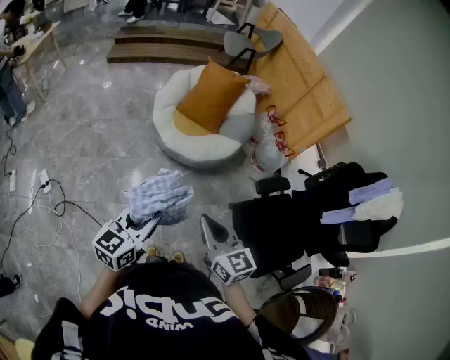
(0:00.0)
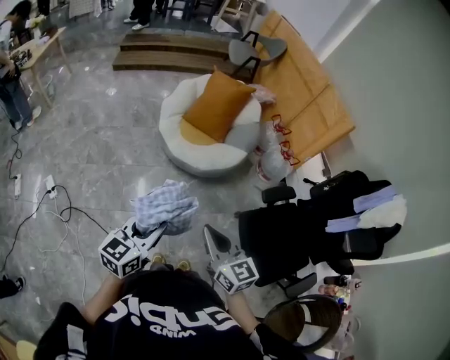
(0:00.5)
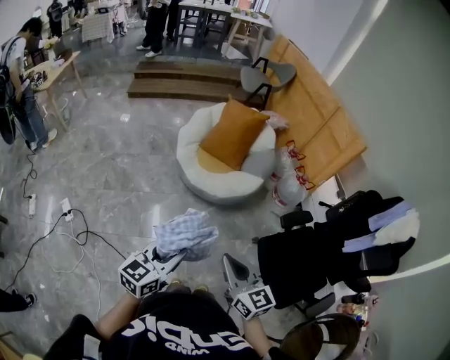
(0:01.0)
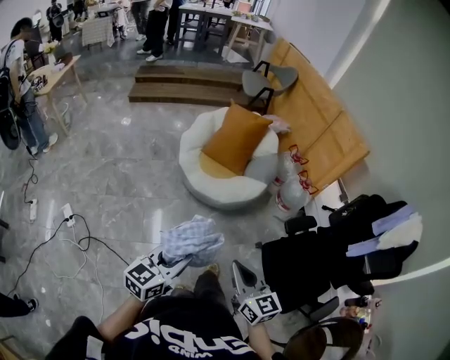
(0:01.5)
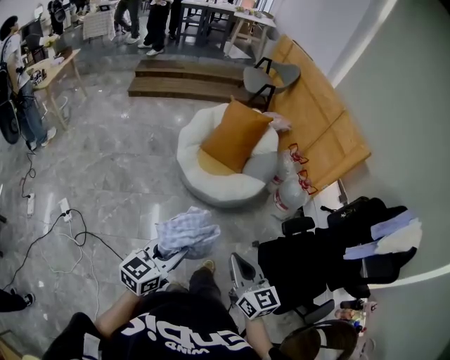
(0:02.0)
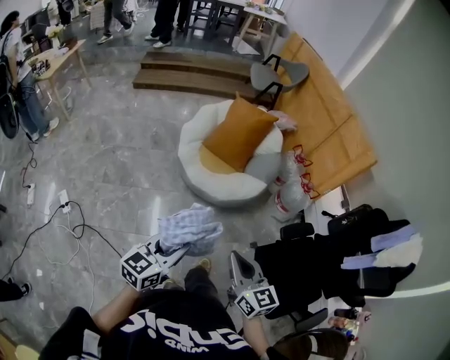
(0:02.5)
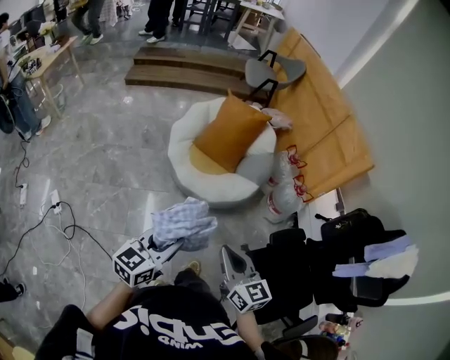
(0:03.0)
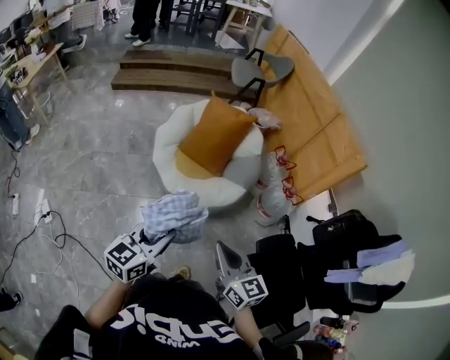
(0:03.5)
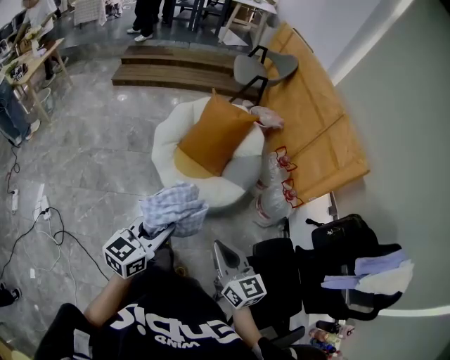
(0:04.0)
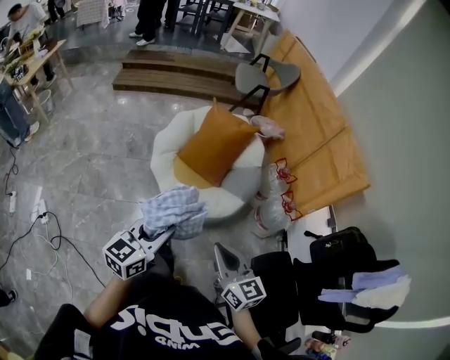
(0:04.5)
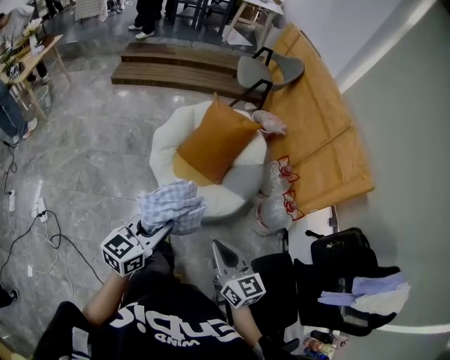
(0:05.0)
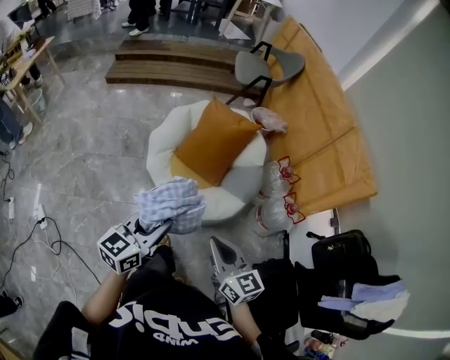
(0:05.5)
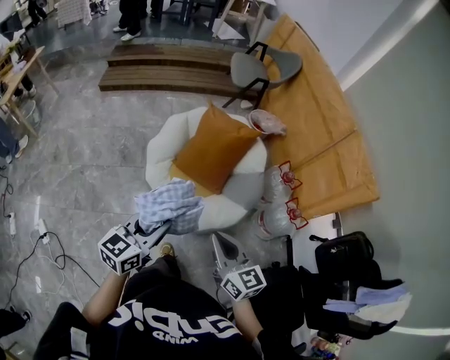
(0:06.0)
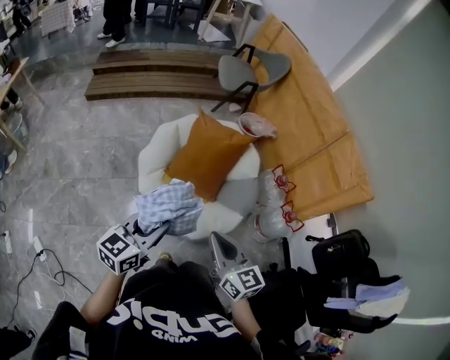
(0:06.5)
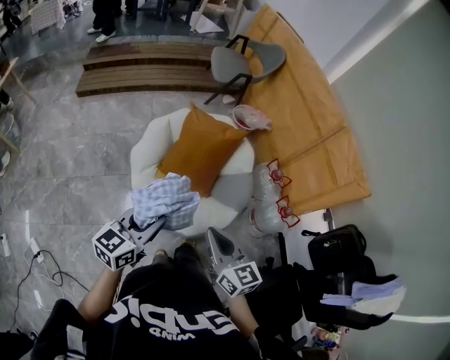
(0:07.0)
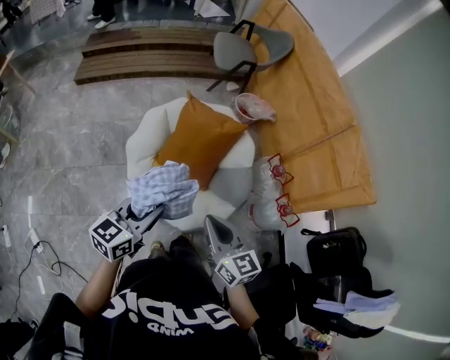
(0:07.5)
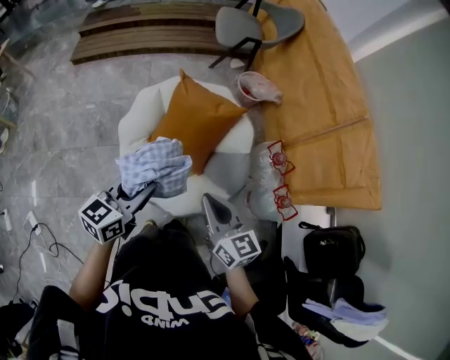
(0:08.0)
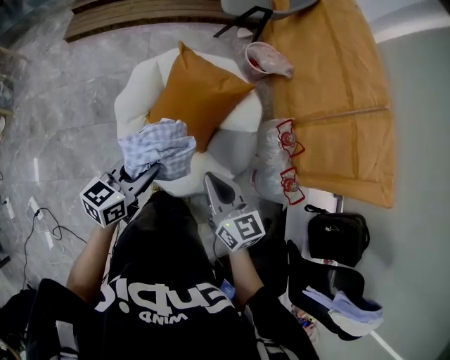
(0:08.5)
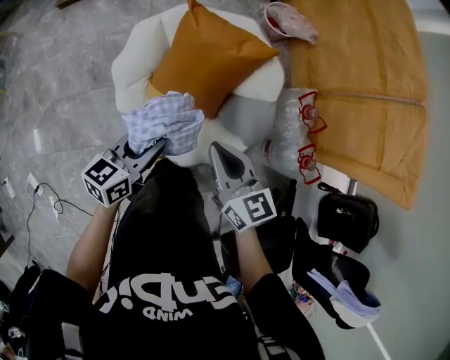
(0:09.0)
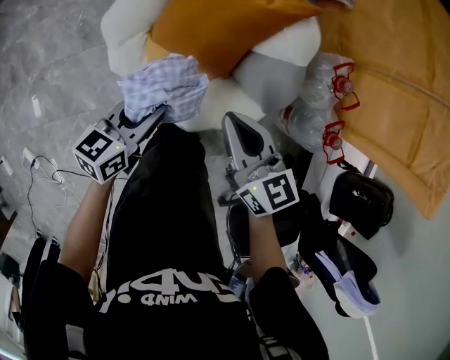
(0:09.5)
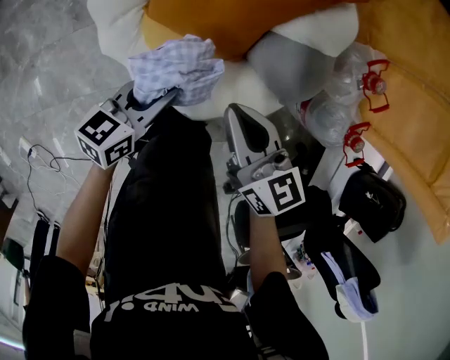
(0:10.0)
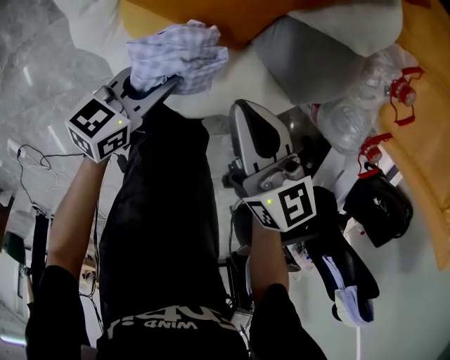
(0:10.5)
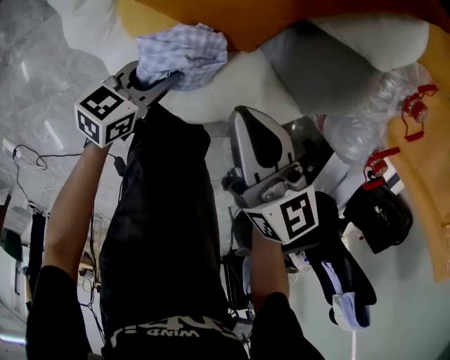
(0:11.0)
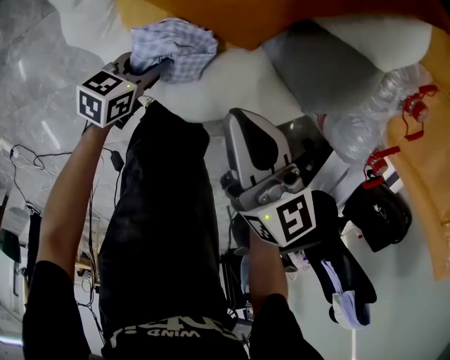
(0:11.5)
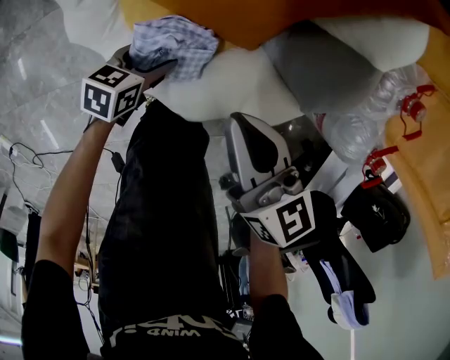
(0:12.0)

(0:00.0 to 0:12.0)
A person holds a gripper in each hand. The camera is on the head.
0:00.0 - 0:02.0: The grippers stay close to where they were, moving slightly.
0:02.0 - 0:04.0: The right gripper travels forward and to the right by approximately 25 cm, while the left gripper shifts approximately 25 cm forward.
0:04.0 - 0:06.0: The grippers both shift forward by roughly 25 cm.
0:06.0 - 0:08.0: Both grippers move forward, approximately 25 cm.
0:08.0 - 0:10.0: Both grippers travel together downward, some 35 cm. The left gripper rotates about 20 degrees.
0:10.0 - 0:12.0: The right gripper moves downward, approximately 15 cm. Meanwhile the left gripper moves downward, about 25 cm, swivels some 20 degrees, and opens.

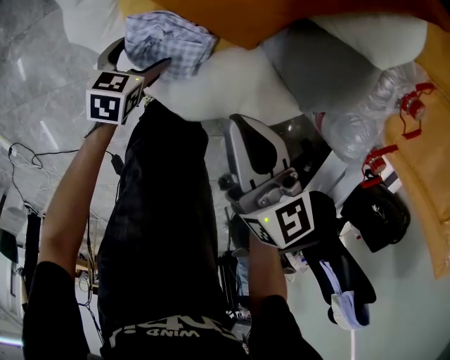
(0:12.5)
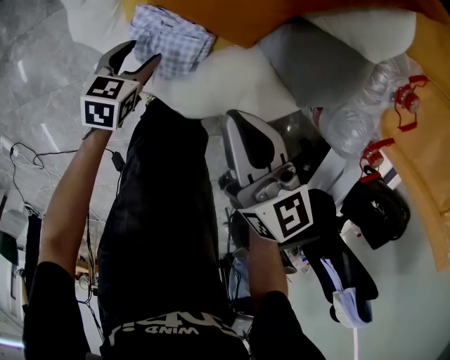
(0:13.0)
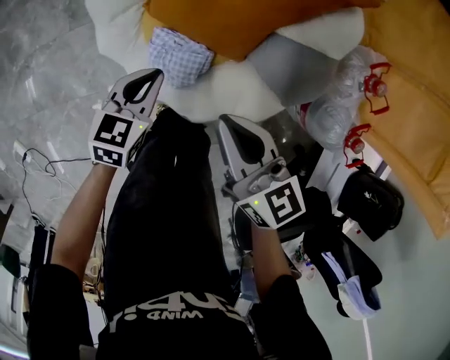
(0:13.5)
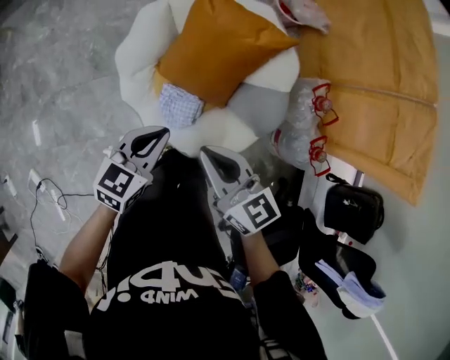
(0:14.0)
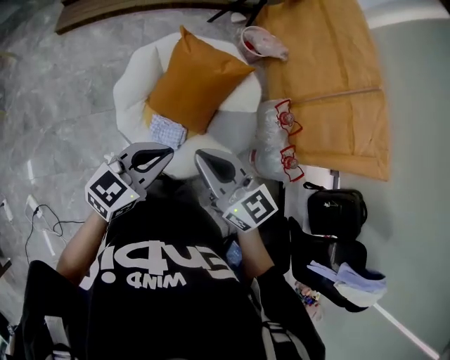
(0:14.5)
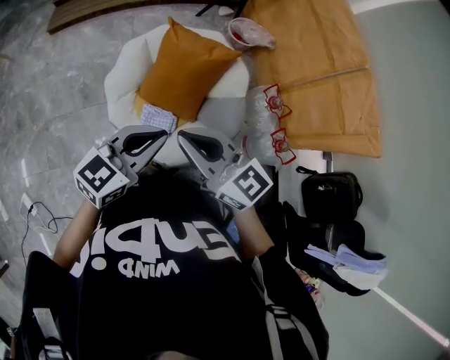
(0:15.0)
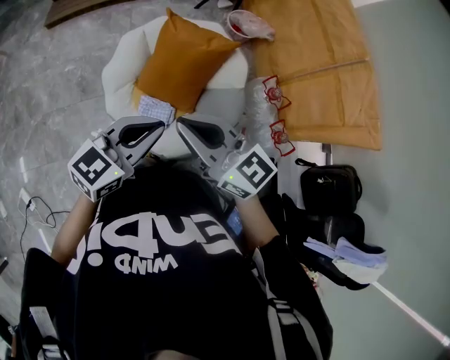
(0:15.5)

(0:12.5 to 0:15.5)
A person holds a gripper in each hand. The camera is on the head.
0:12.5 - 0:14.0: The right gripper moves upward, roughly 35 cm, while the left gripper goes roughly 50 cm upward, rotates about 30 degrees, and closes.
0:14.0 - 0:15.5: The left gripper heads upward and backward, covering roughly 25 cm, and swivels roughly 20 degrees. The right gripper heads upward, covering roughly 20 cm, and swivels approximately 20 degrees.

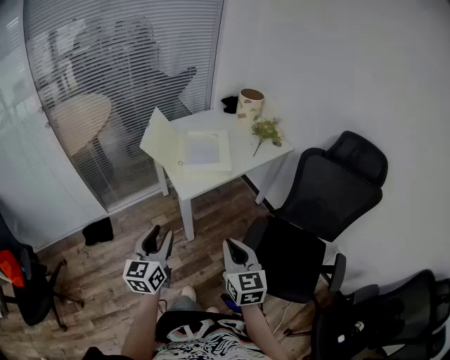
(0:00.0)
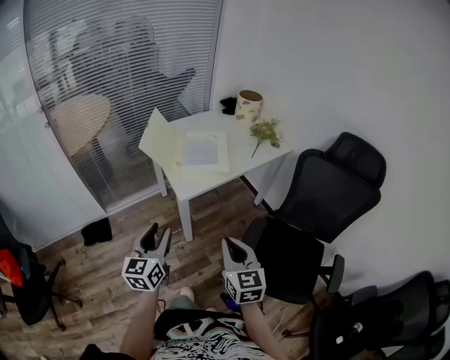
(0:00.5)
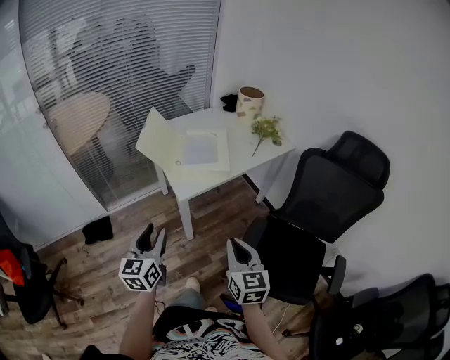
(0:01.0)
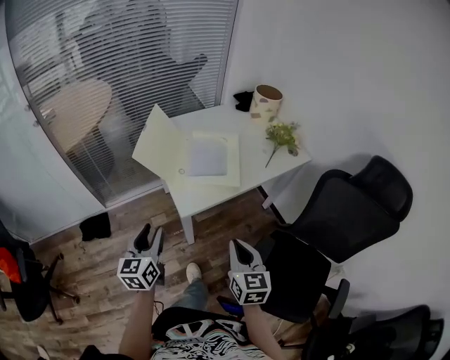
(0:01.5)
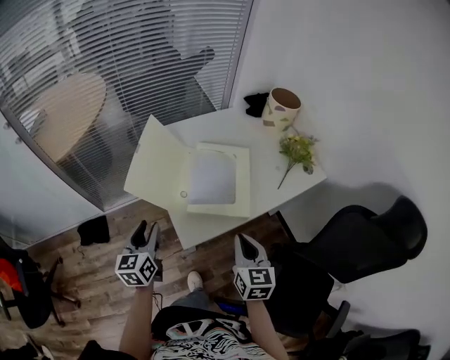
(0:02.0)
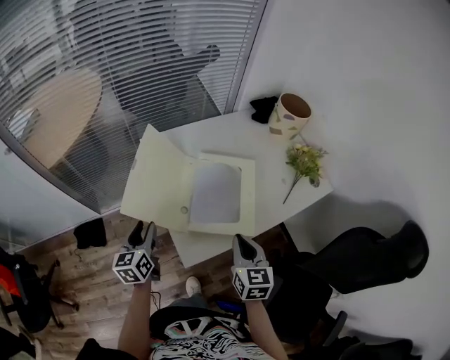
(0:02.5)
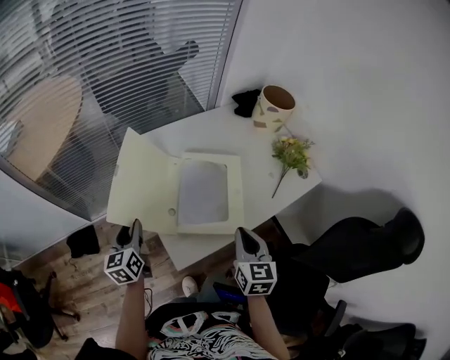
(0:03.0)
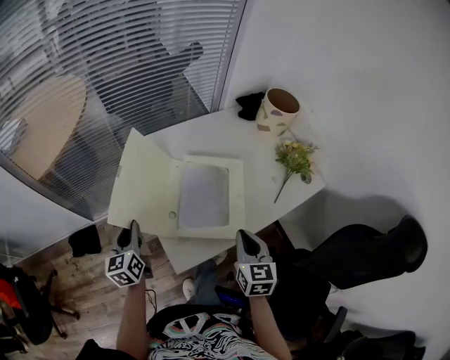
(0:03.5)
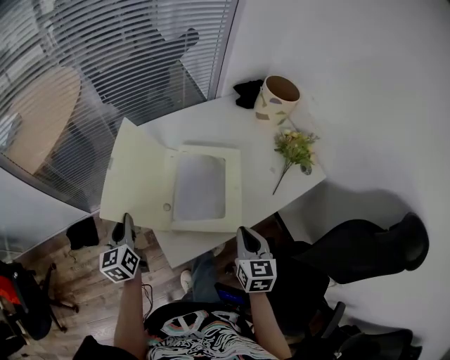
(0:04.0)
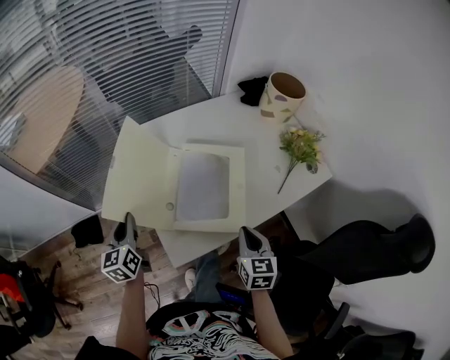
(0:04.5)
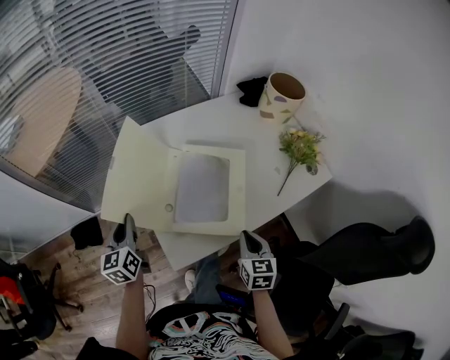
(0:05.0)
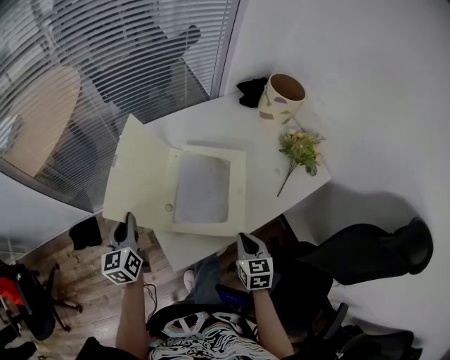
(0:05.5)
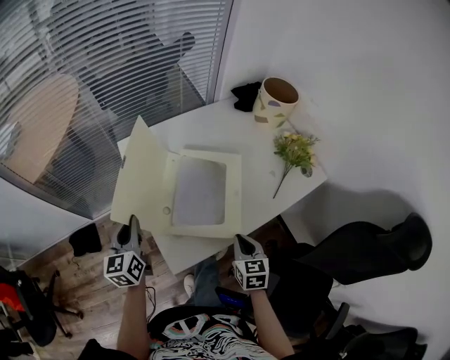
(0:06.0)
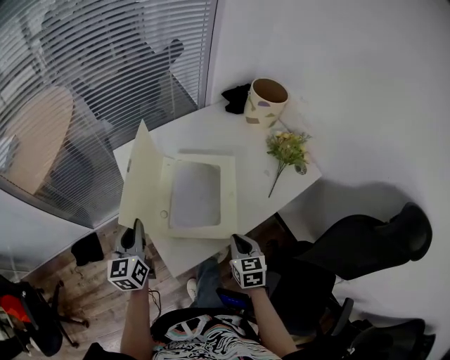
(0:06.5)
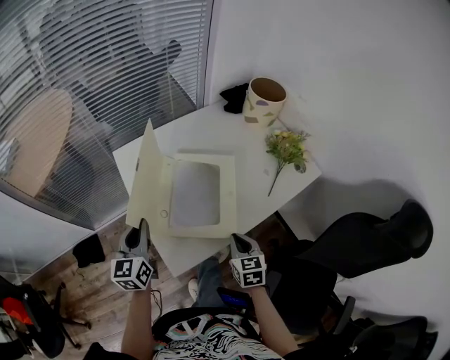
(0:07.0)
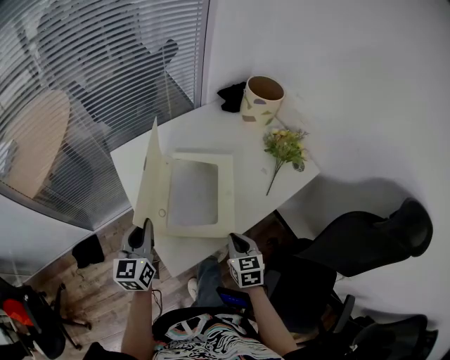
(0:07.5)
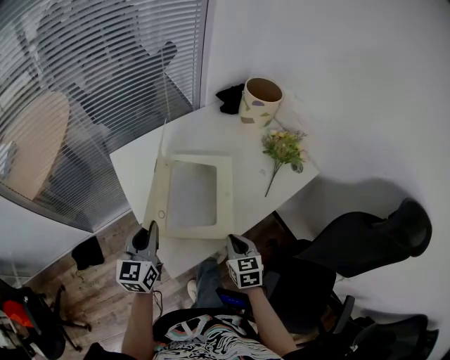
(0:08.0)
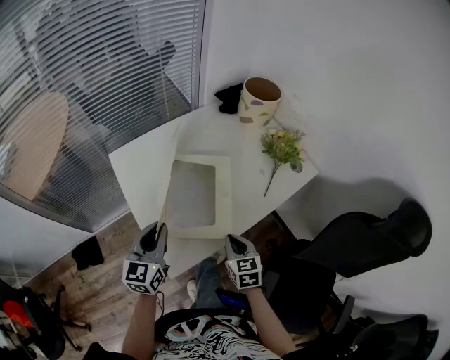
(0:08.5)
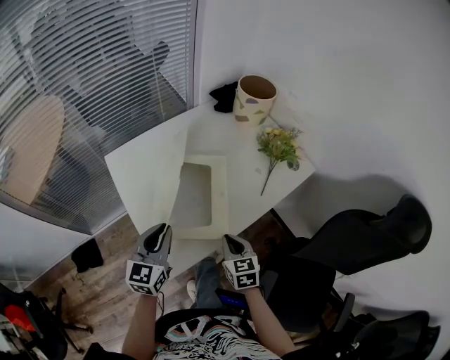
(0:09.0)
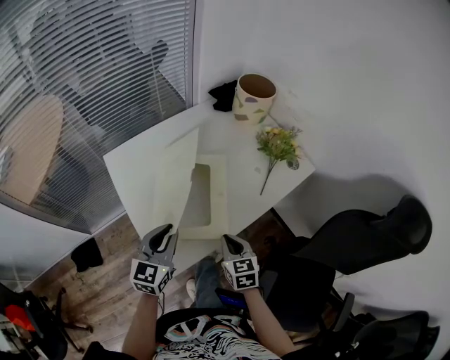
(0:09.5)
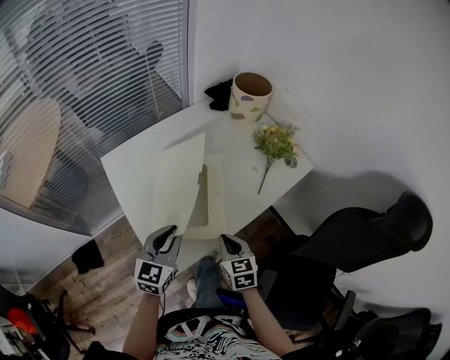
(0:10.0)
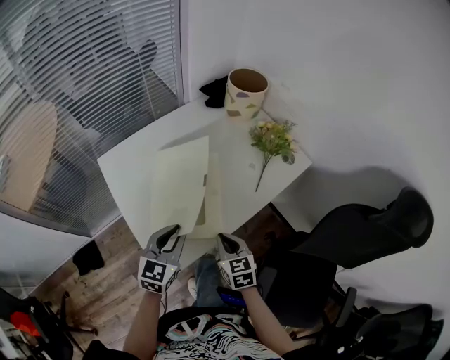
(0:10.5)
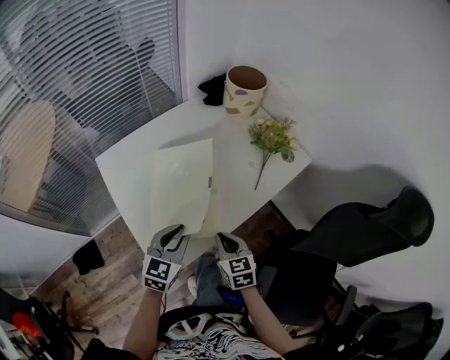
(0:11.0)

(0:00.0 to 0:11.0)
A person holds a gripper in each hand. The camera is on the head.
0:00.0 - 0:02.0: The grippers both shift forward by about 30 cm.
0:02.0 - 0:03.5: The grippers both shift forward by approximately 10 cm.
0:03.5 - 0:05.5: The right gripper moves downward, approximately 10 cm.
0:05.5 - 0:07.5: The left gripper goes some 10 cm to the right.
0:07.5 - 0:09.0: The left gripper heads to the right, covering approximately 10 cm.
0:09.0 - 0:11.0: The left gripper heads to the right, covering some 10 cm.

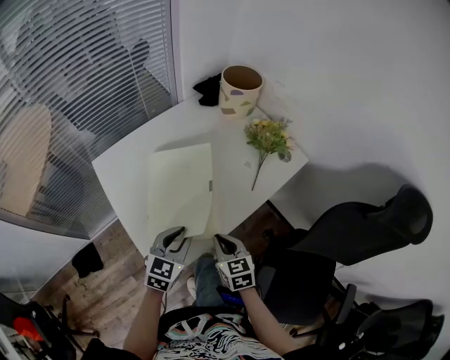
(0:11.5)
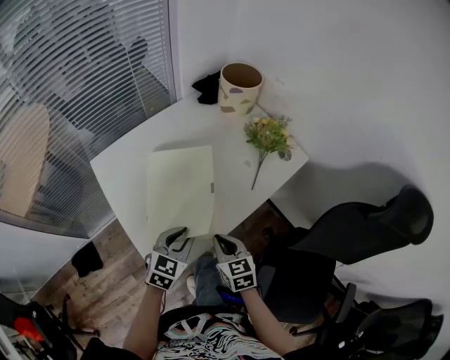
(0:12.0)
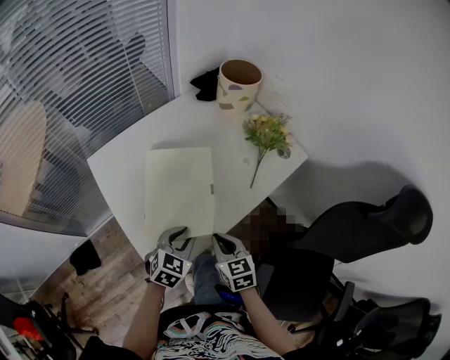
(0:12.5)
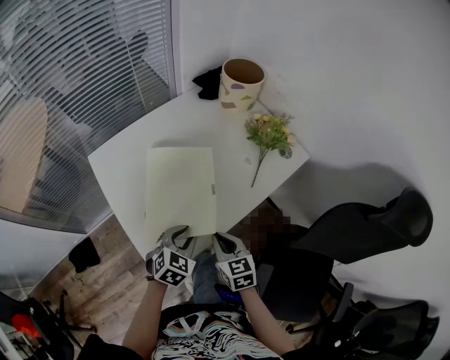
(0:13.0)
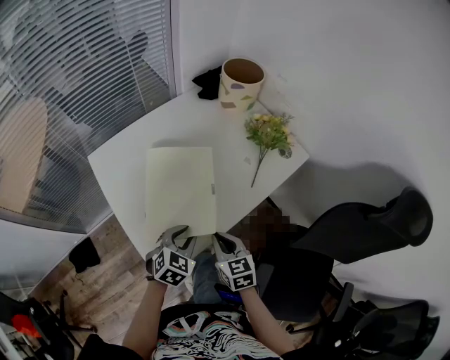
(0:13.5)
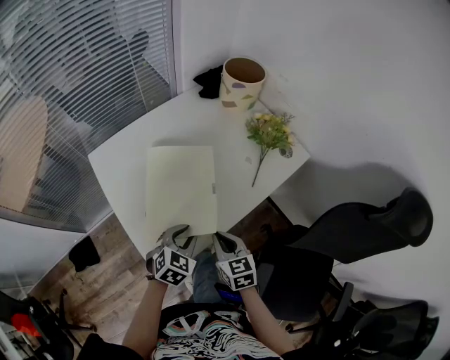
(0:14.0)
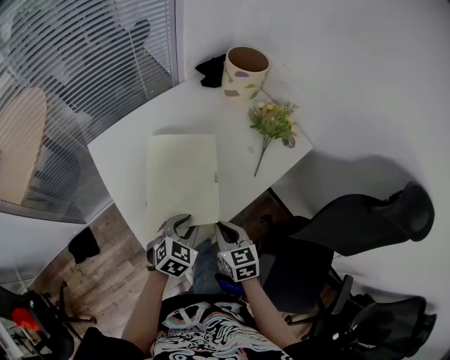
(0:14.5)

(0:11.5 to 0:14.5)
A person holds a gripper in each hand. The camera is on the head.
0:11.5 - 0:13.0: The left gripper changes place by about 5 cm.
0:13.0 - 0:14.5: Neither gripper changes place.
